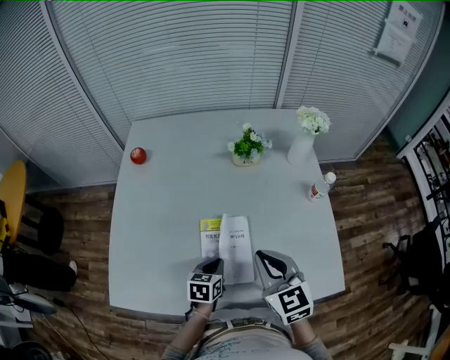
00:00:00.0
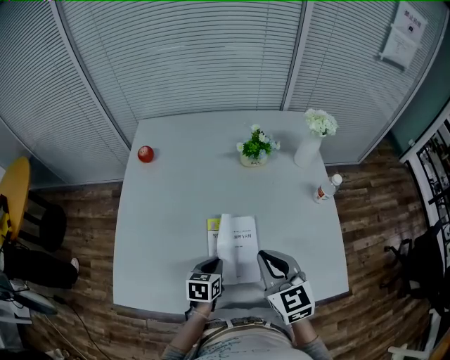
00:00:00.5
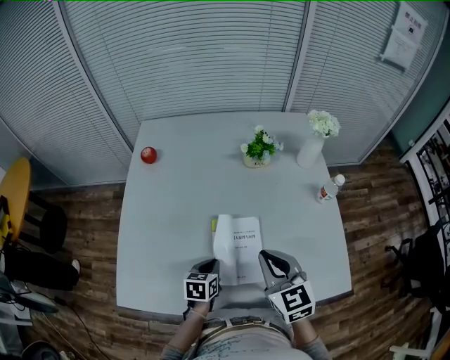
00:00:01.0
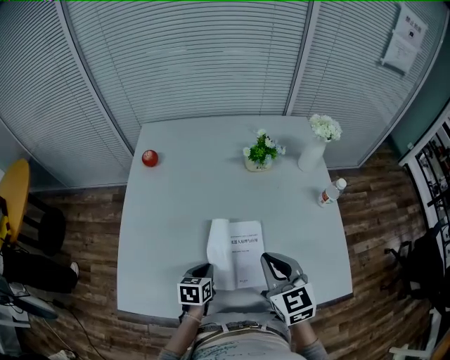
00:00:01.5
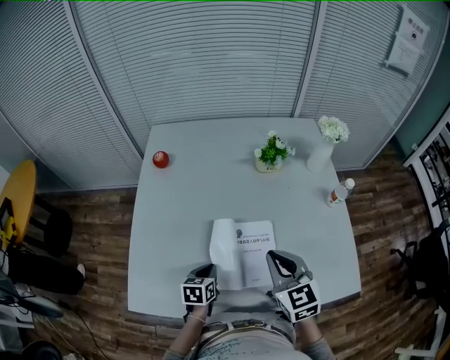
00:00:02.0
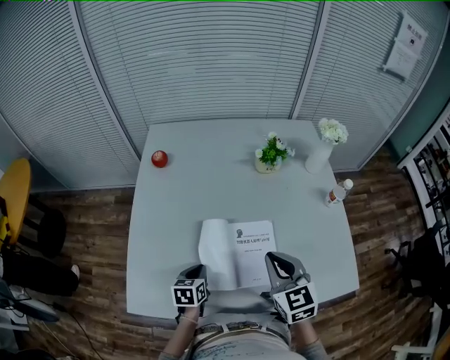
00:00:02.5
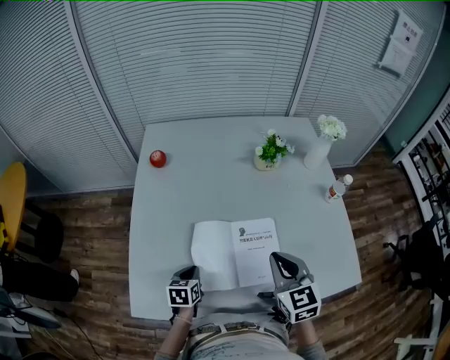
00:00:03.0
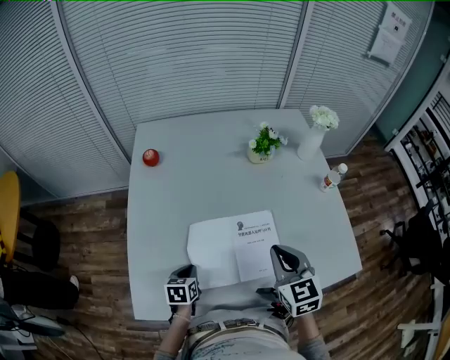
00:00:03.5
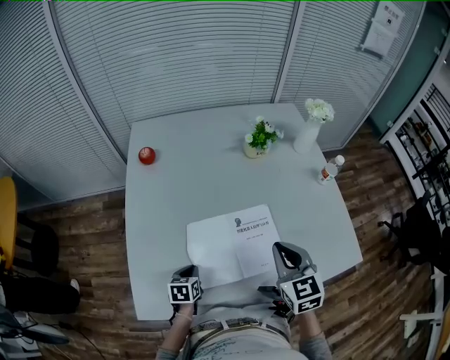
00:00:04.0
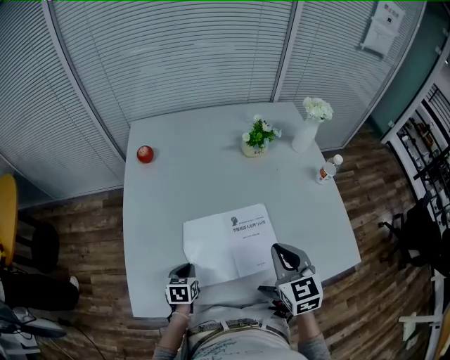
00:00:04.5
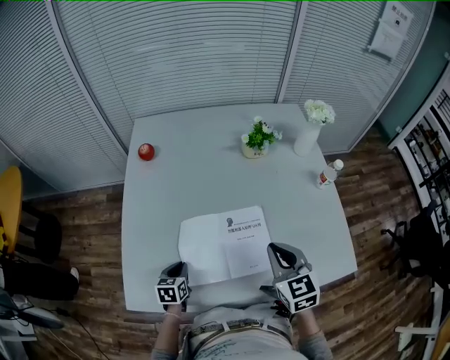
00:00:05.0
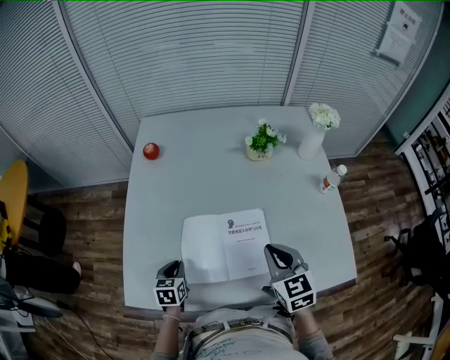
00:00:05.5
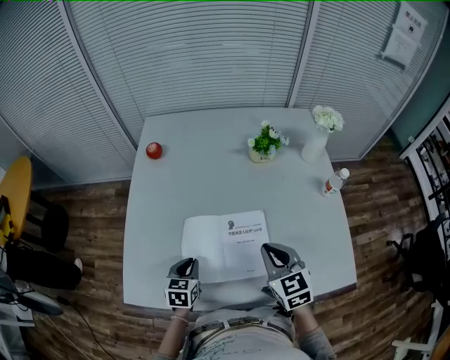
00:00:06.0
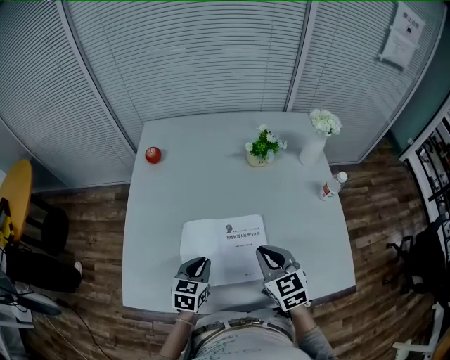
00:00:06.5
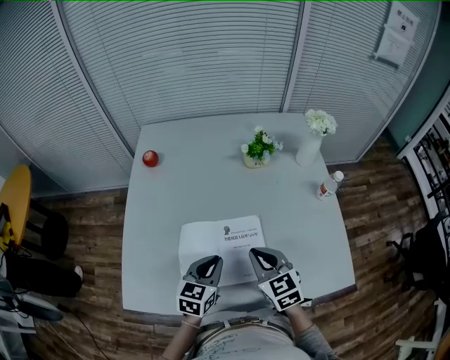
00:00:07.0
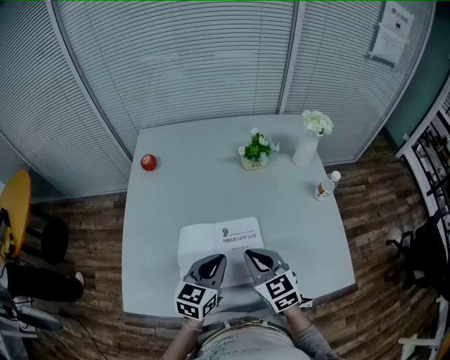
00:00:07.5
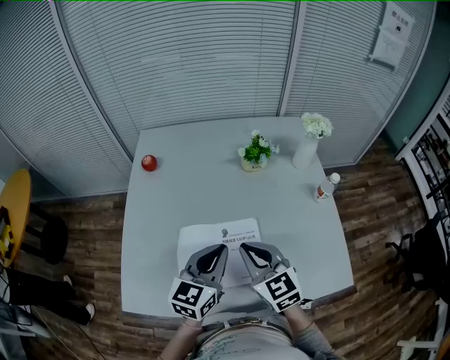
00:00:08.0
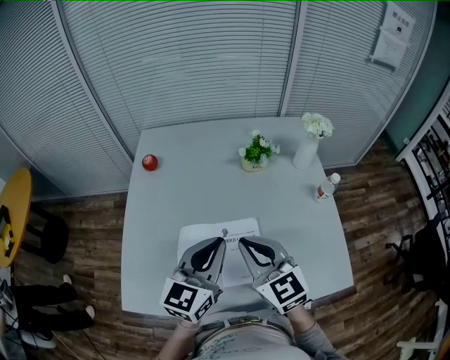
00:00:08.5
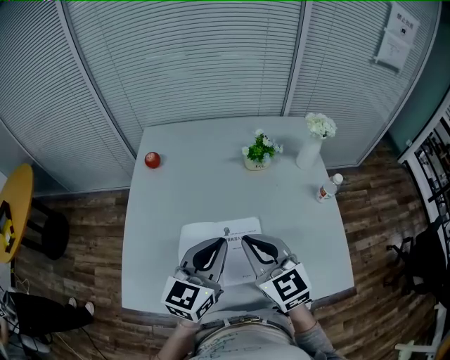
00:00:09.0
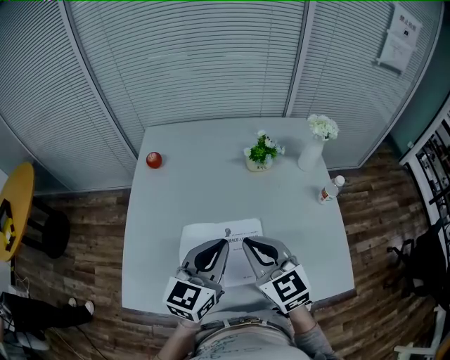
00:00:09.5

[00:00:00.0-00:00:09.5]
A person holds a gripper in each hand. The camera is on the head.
00:00:00.0 to 00:00:02.0: The right gripper shifts about 5 cm to the left. Meanwhile the left gripper is displaced to the left by roughly 15 cm.
00:00:02.0 to 00:00:04.0: The left gripper goes approximately 10 cm to the left and downward.
00:00:04.0 to 00:00:05.5: The grippers stay close to where they were, moving slightly.
00:00:05.5 to 00:00:07.5: The left gripper goes about 25 cm to the right and upward, and changes its angle by about 30 degrees.
00:00:07.5 to 00:00:09.5: The two grippers go some 10 cm upward.

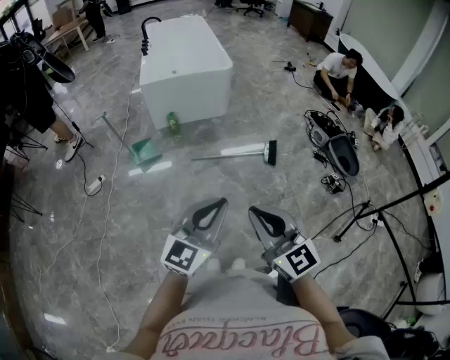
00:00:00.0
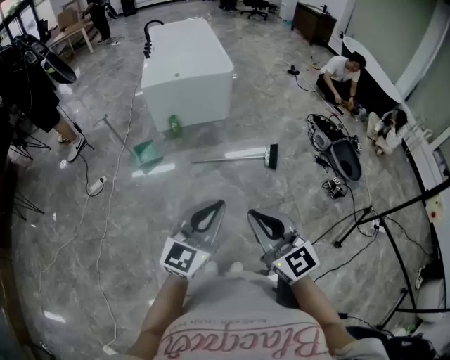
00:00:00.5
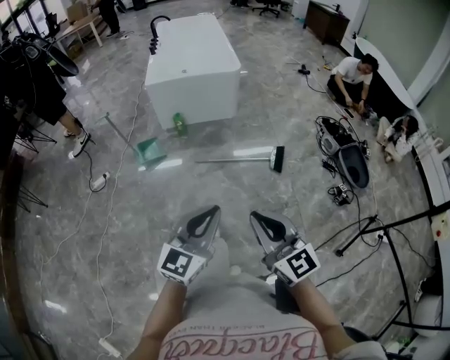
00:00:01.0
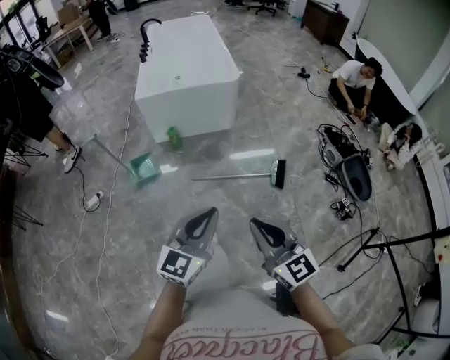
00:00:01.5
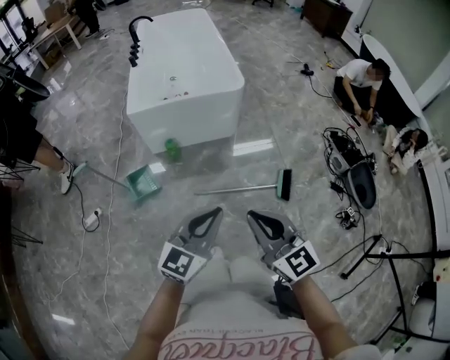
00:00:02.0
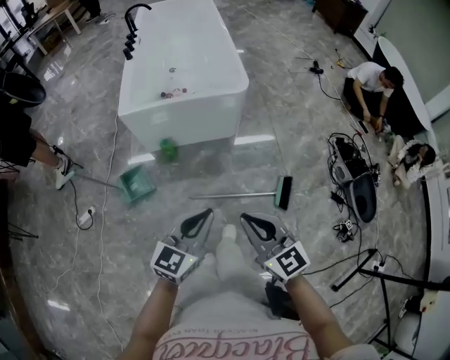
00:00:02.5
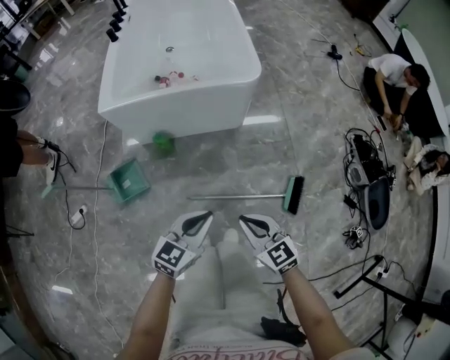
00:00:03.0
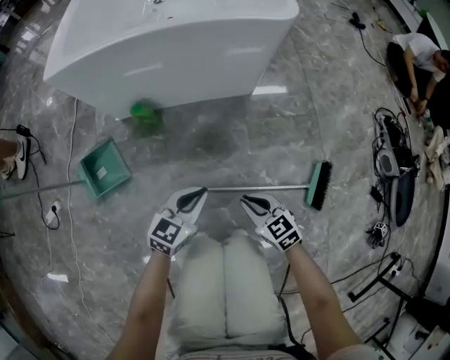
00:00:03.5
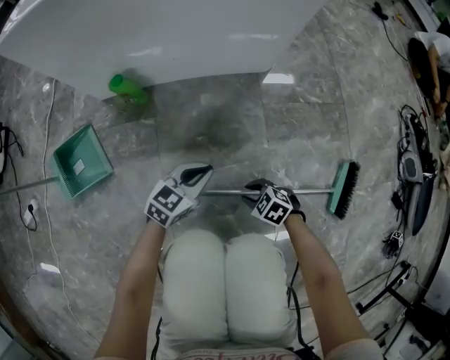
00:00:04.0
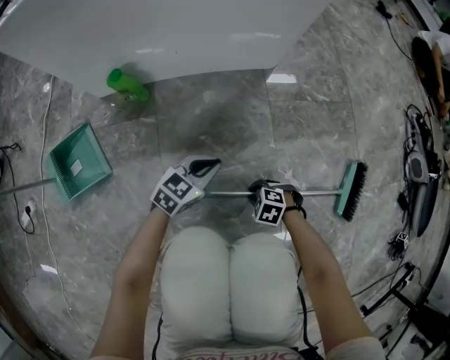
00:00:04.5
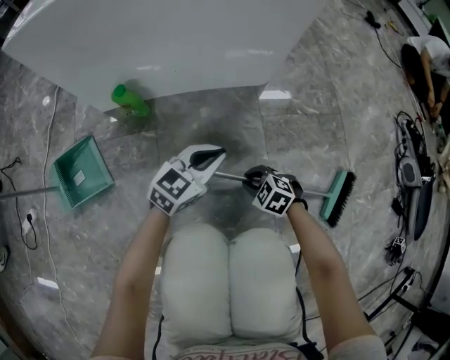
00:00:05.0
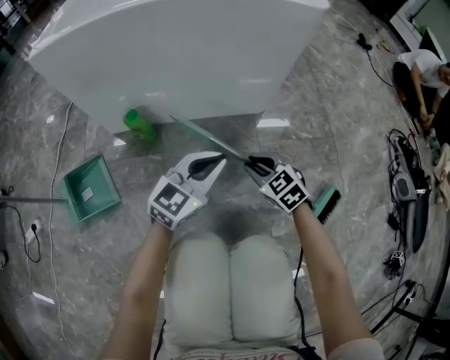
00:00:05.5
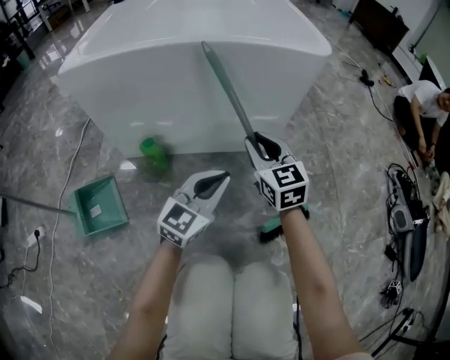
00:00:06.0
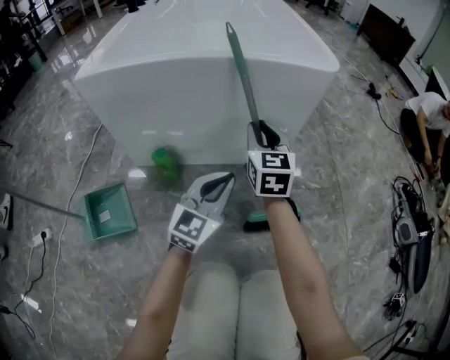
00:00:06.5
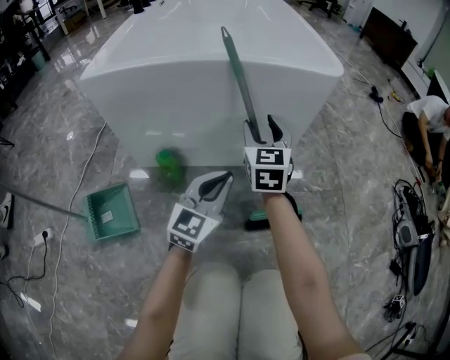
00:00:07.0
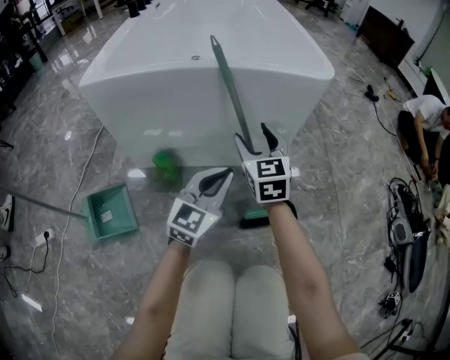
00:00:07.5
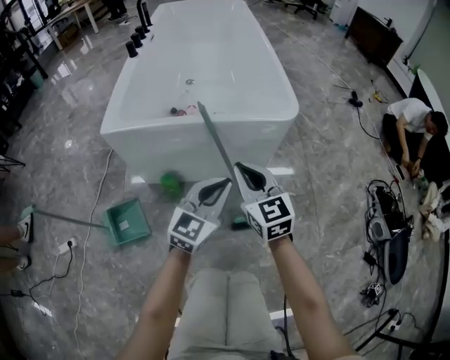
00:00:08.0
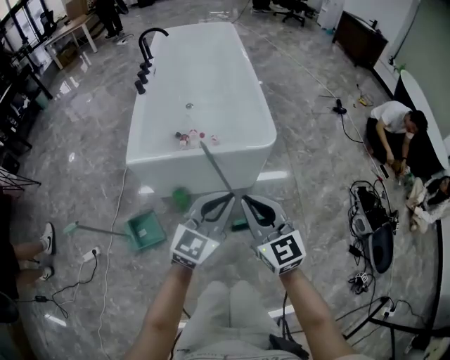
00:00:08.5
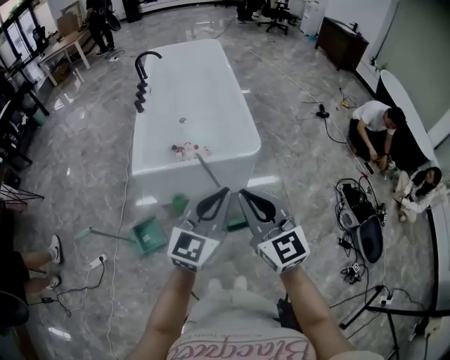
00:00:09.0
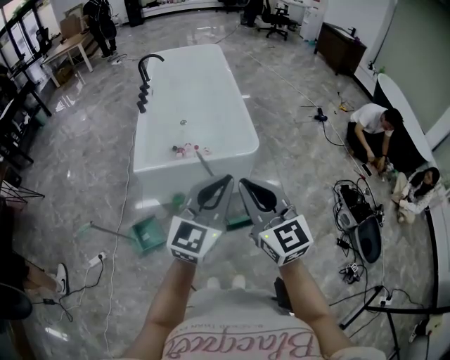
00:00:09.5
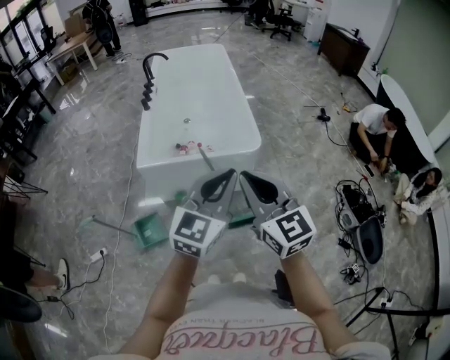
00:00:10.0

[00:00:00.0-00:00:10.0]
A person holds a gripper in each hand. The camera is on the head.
00:00:00.0 to 00:00:02.0: The grippers both shift forward by about 30 cm.
00:00:02.0 to 00:00:04.0: Both grippers travel together downward, approximately 70 cm. The right gripper points its fingers about 60 degrees further downward, and opens up. Meanwhile the left gripper swivels approximately 30 degrees.
00:00:04.0 to 00:00:06.0: The right gripper travels upward by some 30 cm, and angles its fingers upward, by about 50 degrees; the left gripper shifts some 20 cm upward, and rotates about 30 degrees.
00:00:06.0 to 00:00:08.0: Both grippers move upward, approximately 20 cm. The right gripper opens, then closes once more.
00:00:08.0 to 00:00:10.0: The right gripper travels upward and backward by approximately 40 cm, while the left gripper travels upward by some 40 cm.

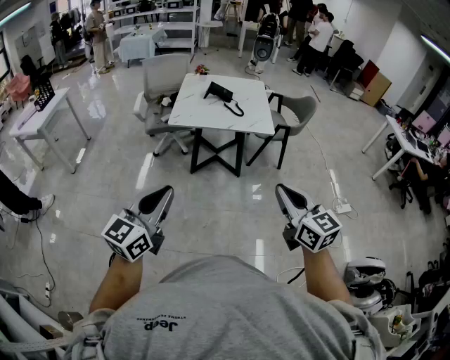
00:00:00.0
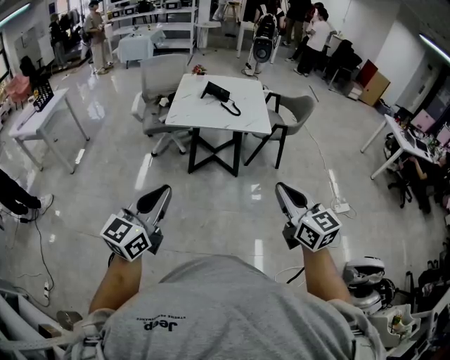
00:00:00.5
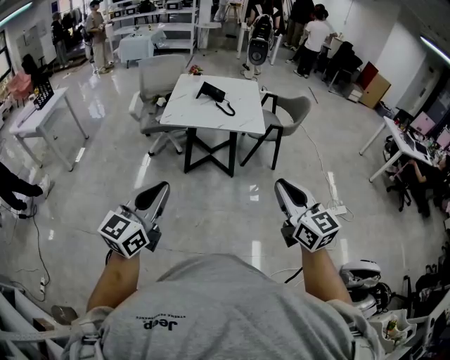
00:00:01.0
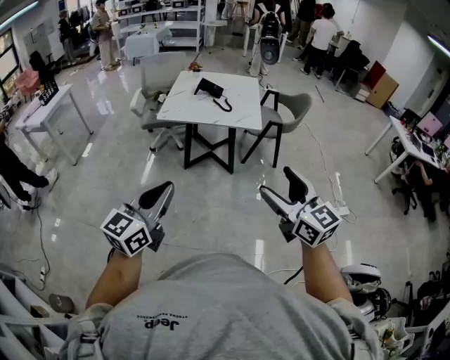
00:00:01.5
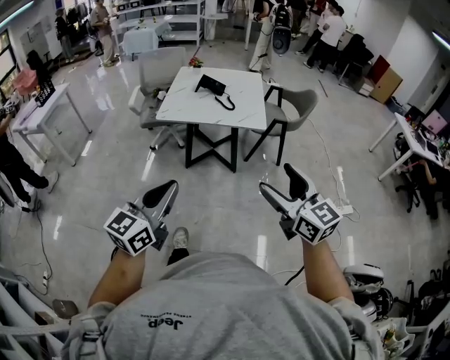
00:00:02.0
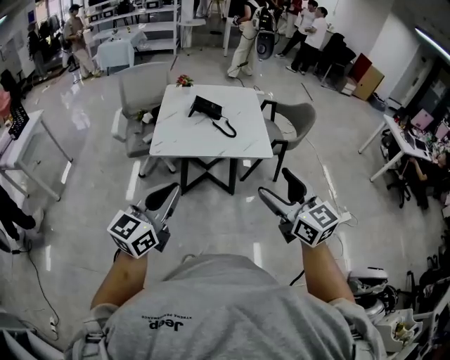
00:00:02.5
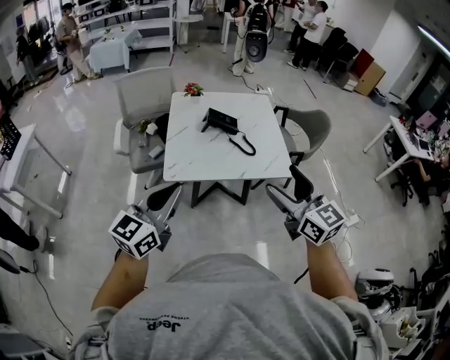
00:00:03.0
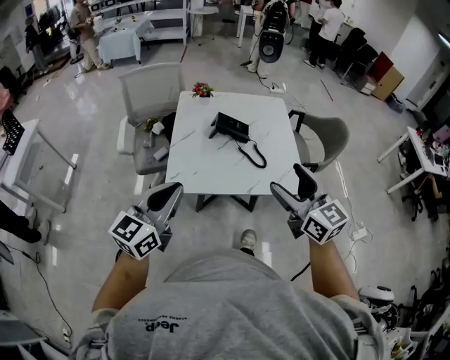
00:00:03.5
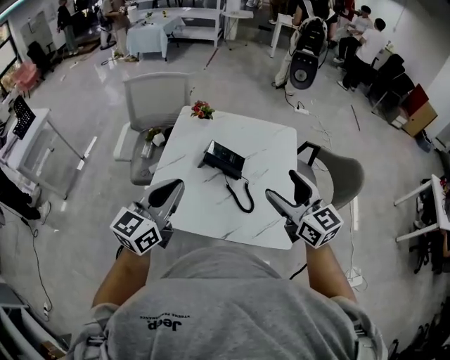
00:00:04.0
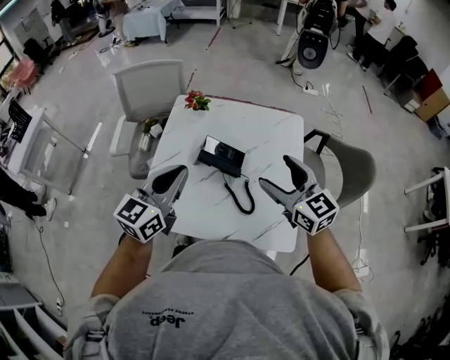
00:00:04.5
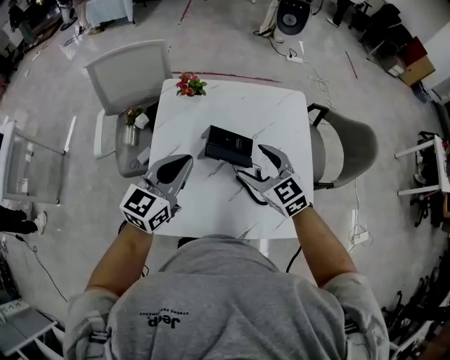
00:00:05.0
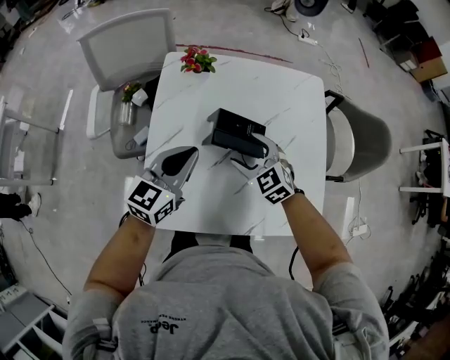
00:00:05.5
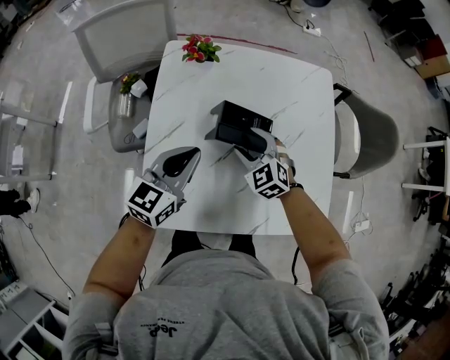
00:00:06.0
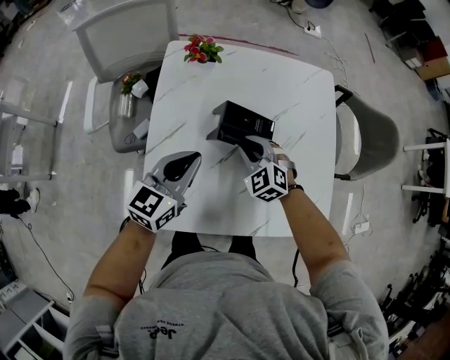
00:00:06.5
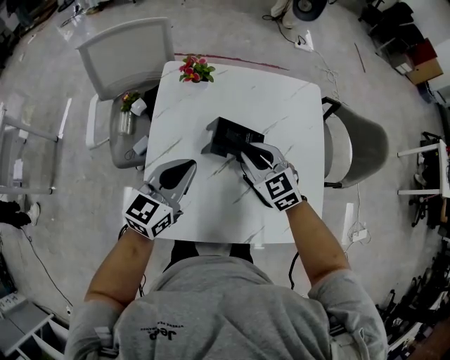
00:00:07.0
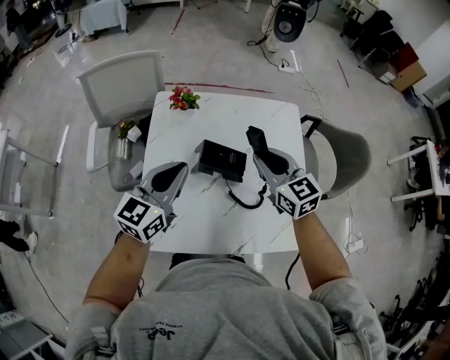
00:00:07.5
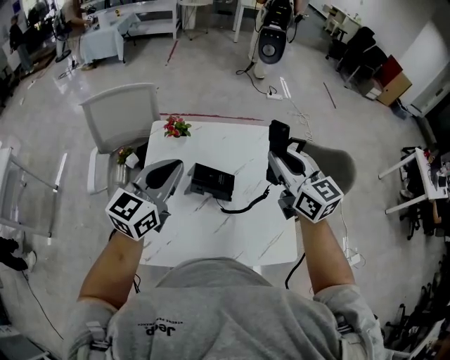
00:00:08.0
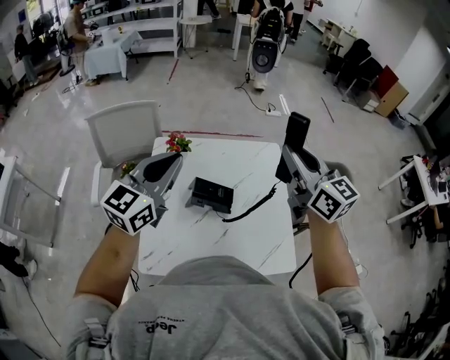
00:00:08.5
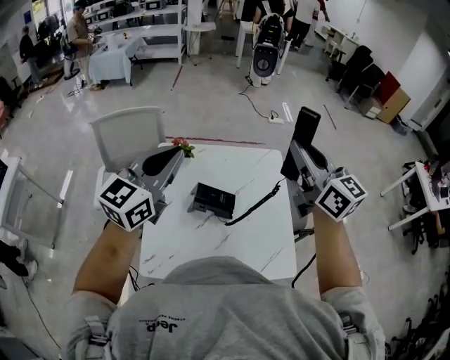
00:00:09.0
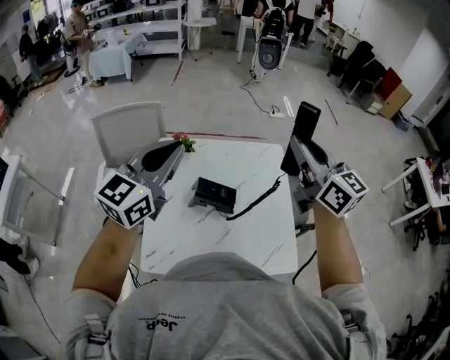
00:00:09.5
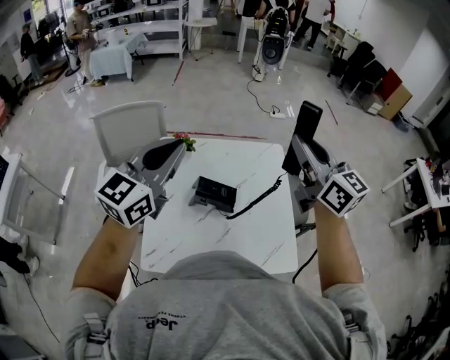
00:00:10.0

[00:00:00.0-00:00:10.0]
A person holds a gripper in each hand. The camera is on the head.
00:00:00.0 to 00:00:02.0: Both grippers move to the right, some 10 cm. The right gripper opens its fingers.
00:00:02.0 to 00:00:04.0: The pair of grippers is taken forward, about 70 cm.
00:00:04.0 to 00:00:06.0: The right gripper travels downward, forward and to the left by about 40 cm, and points its fingers roughly 30 degrees further downward. Meanwhile the left gripper shifts some 30 cm downward and forward.
00:00:06.0 to 00:00:08.0: The left gripper shifts some 20 cm upward. The right gripper goes roughly 35 cm upward, angles its fingers upward, by some 30 degrees, and closes its fingers.
00:00:08.0 to 00:00:10.0: The grippers both shift upward by roughly 10 cm.
